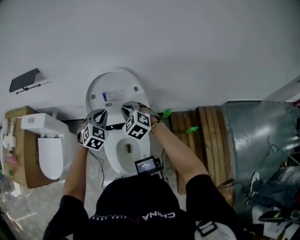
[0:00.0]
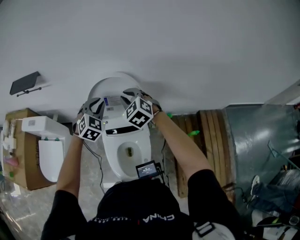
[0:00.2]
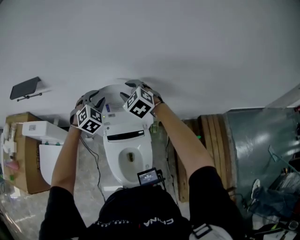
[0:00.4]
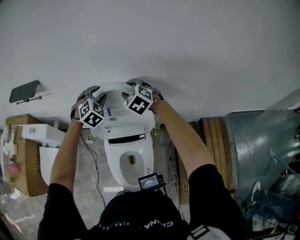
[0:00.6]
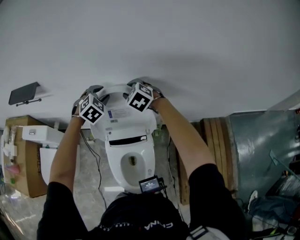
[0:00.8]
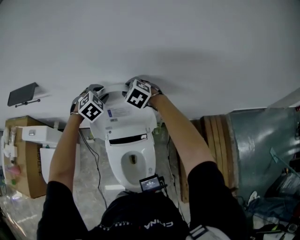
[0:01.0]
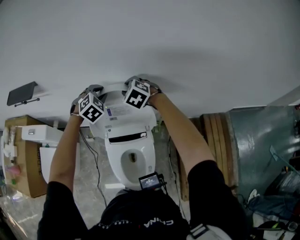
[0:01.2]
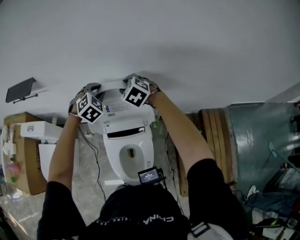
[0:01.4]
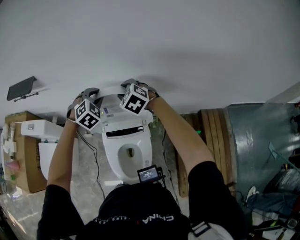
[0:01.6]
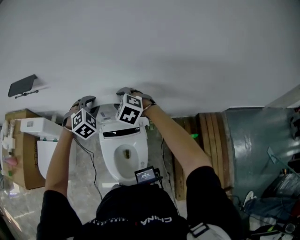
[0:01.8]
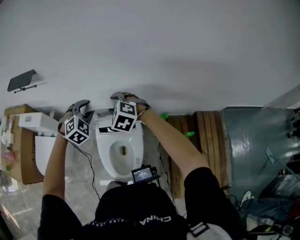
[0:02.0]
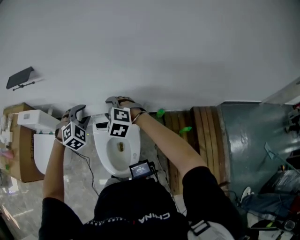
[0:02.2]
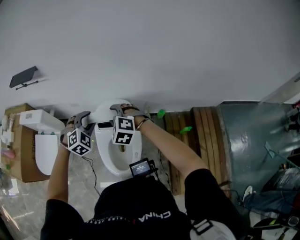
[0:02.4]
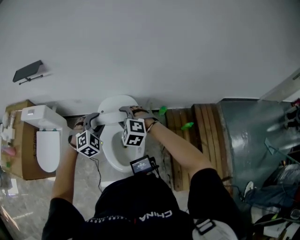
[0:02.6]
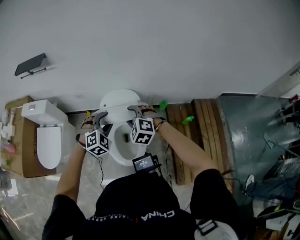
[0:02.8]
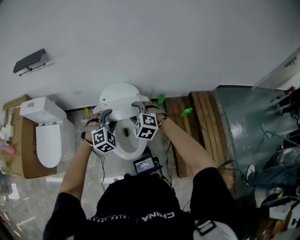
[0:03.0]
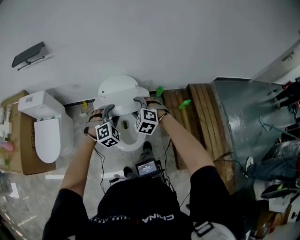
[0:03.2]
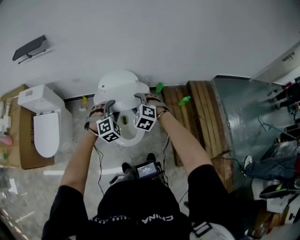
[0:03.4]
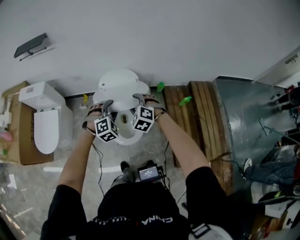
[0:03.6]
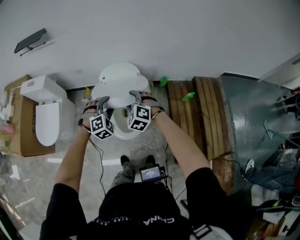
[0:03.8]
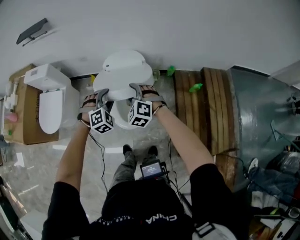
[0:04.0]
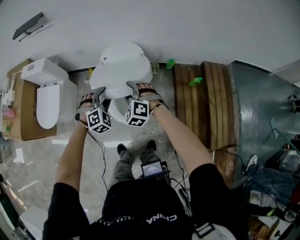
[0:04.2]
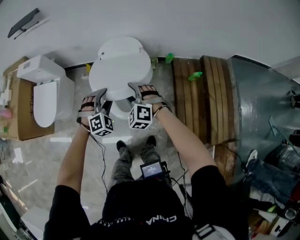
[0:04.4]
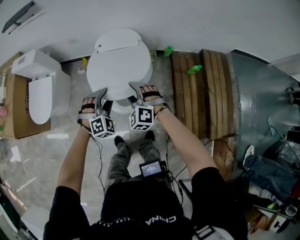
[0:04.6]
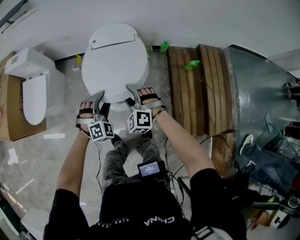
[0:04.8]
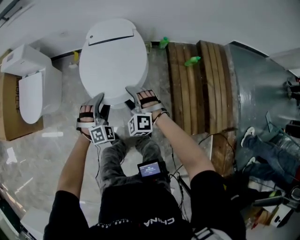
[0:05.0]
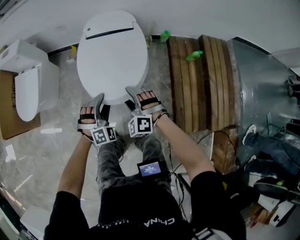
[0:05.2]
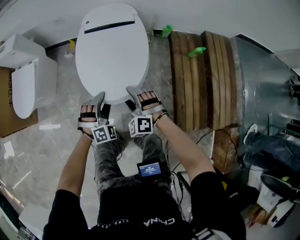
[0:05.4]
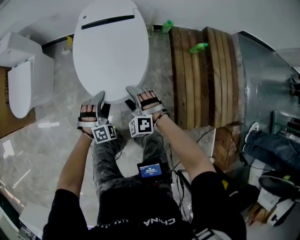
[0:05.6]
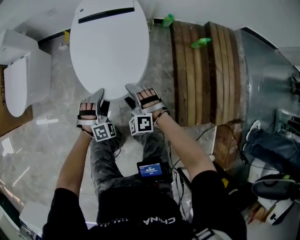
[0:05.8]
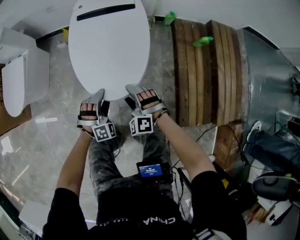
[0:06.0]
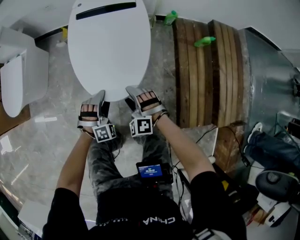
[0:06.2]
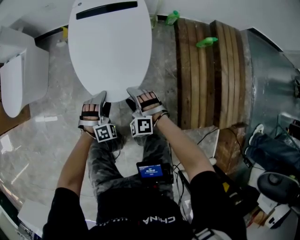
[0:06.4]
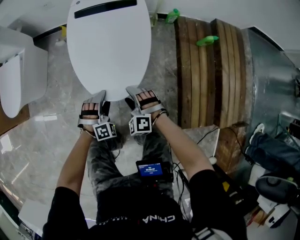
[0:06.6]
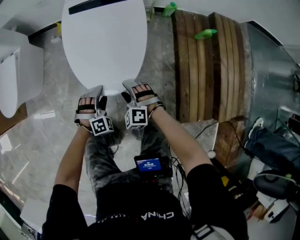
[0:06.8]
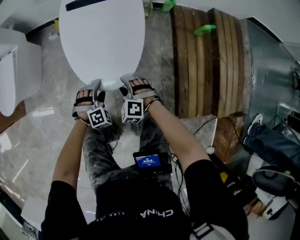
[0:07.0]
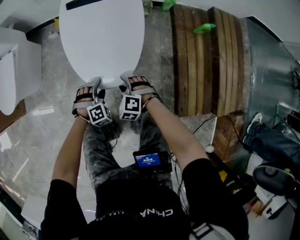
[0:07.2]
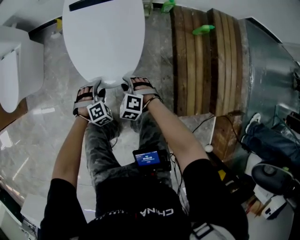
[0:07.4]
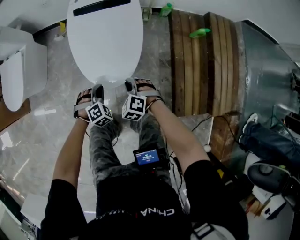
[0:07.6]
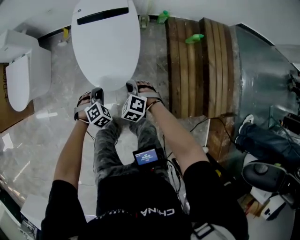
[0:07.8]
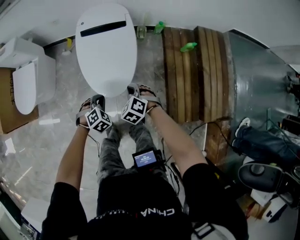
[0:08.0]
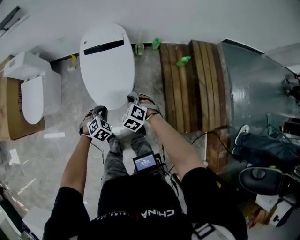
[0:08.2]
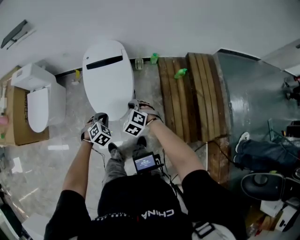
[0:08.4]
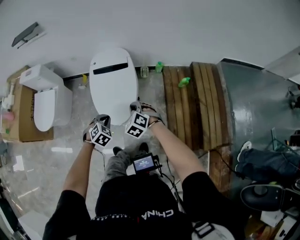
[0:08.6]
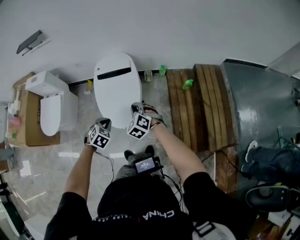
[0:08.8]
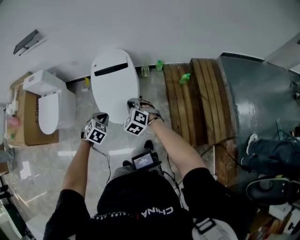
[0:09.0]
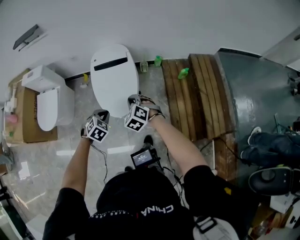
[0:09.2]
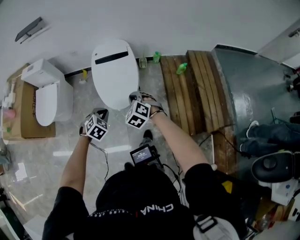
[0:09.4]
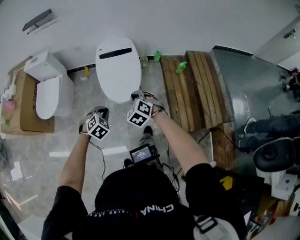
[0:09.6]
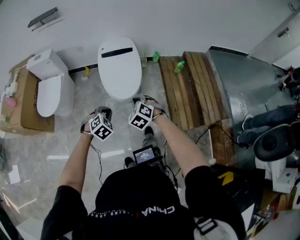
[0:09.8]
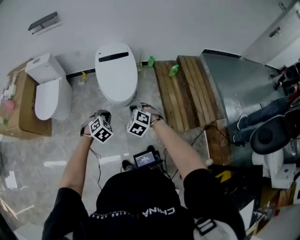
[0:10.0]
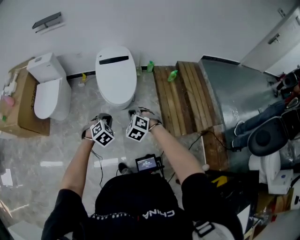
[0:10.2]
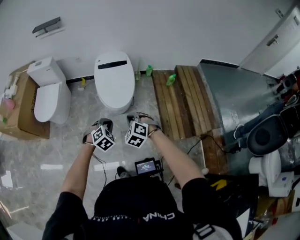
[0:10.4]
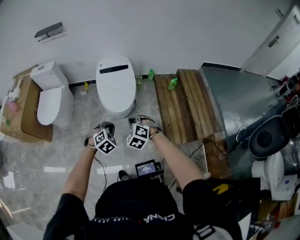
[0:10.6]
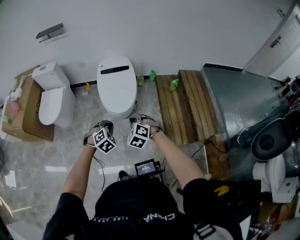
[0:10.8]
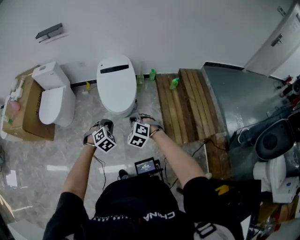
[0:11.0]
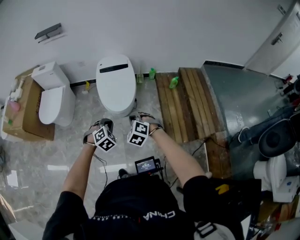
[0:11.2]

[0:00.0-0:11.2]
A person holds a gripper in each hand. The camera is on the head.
0:00.0 to 0:01.6: Both grippers travel together forward, about 15 cm. The right gripper opens.
0:01.6 to 0:03.2: Both grippers move backward, approximately 35 cm.
0:03.2 to 0:04.8: The grippers both shift downward and backward by roughly 20 cm.
0:04.8 to 0:06.4: The two grippers go about 30 cm downward.
0:06.4 to 0:08.0: Both grippers travel together upward, about 15 cm. The right gripper rotates some 30 degrees, and closes its fingers; the left gripper changes its angle by roughly 30 degrees, and closes.
0:08.0 to 0:09.6: Both grippers move upward and backward, approximately 25 cm.
0:09.6 to 0:11.2: The left gripper is displaced backward and to the right by roughly 10 cm. Meanwhile the right gripper is displaced backward by approximately 15 cm.

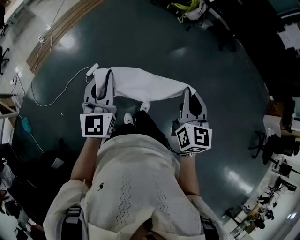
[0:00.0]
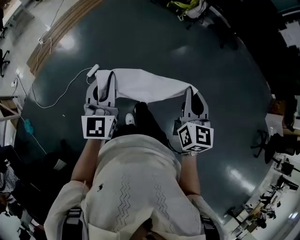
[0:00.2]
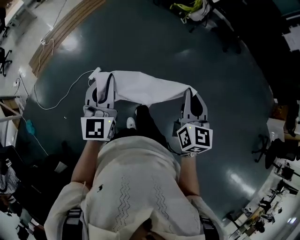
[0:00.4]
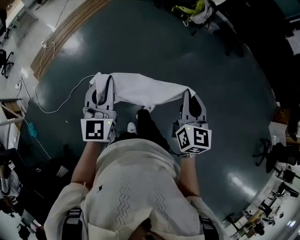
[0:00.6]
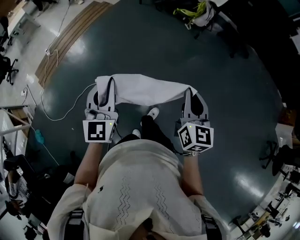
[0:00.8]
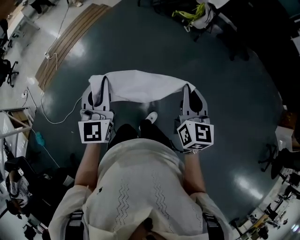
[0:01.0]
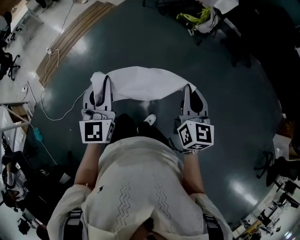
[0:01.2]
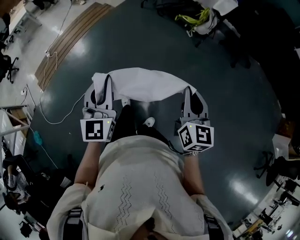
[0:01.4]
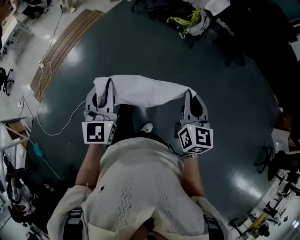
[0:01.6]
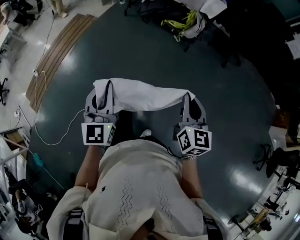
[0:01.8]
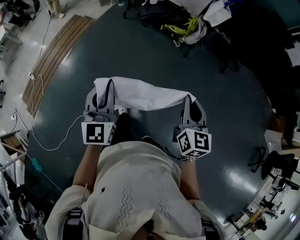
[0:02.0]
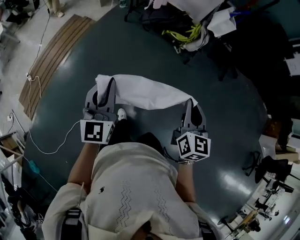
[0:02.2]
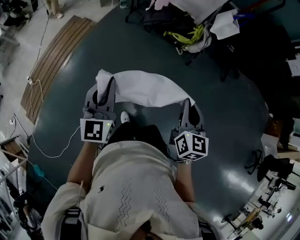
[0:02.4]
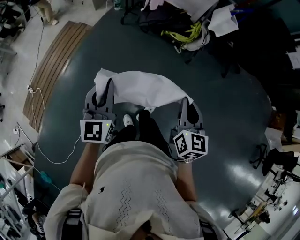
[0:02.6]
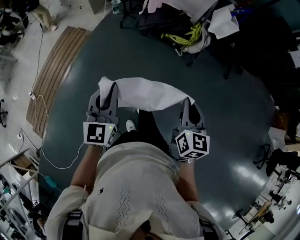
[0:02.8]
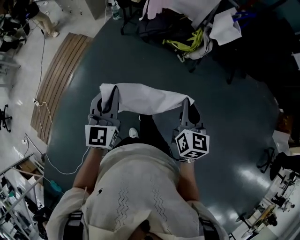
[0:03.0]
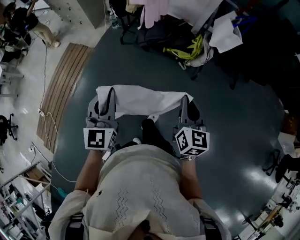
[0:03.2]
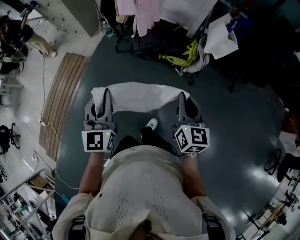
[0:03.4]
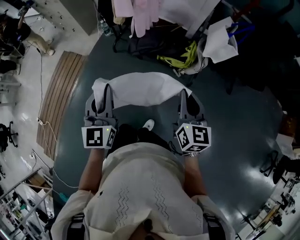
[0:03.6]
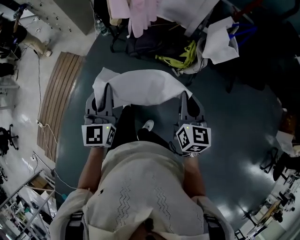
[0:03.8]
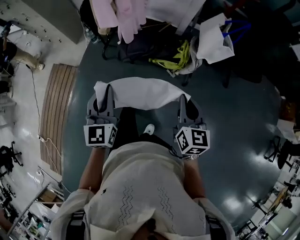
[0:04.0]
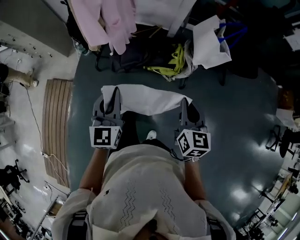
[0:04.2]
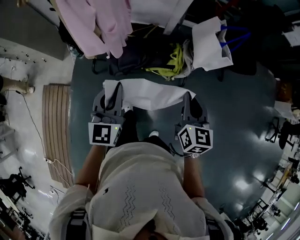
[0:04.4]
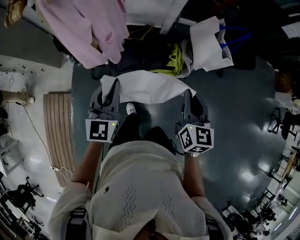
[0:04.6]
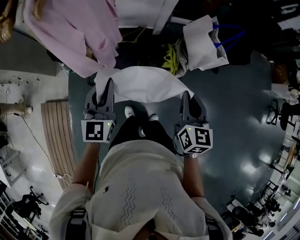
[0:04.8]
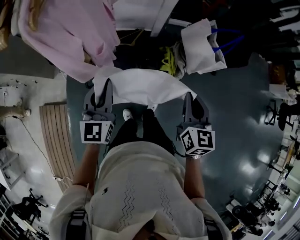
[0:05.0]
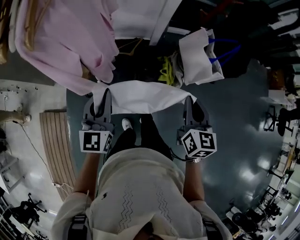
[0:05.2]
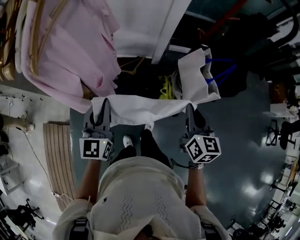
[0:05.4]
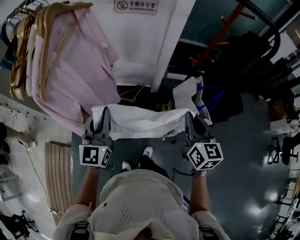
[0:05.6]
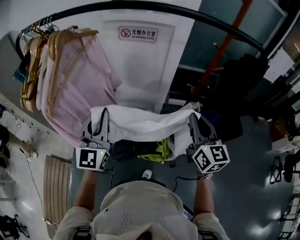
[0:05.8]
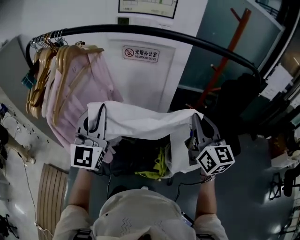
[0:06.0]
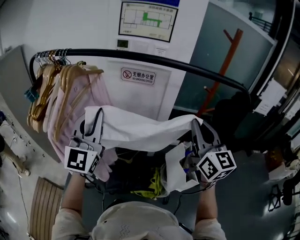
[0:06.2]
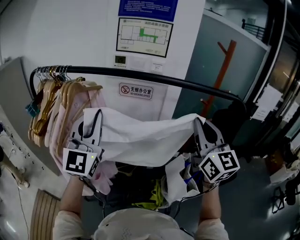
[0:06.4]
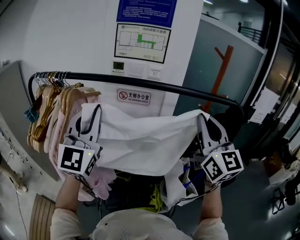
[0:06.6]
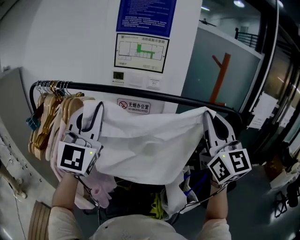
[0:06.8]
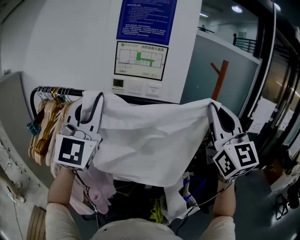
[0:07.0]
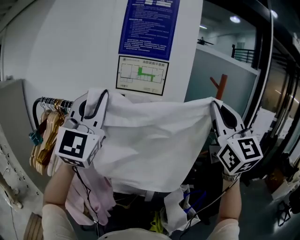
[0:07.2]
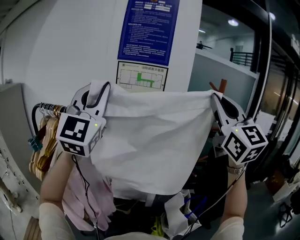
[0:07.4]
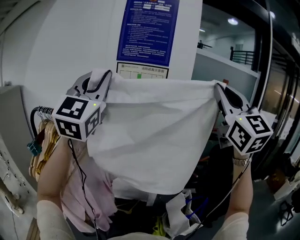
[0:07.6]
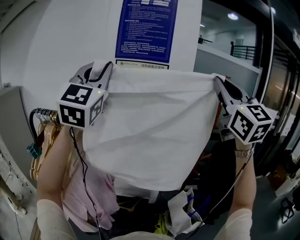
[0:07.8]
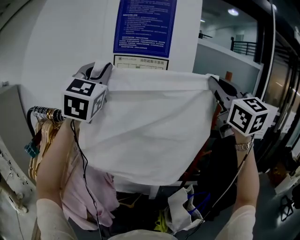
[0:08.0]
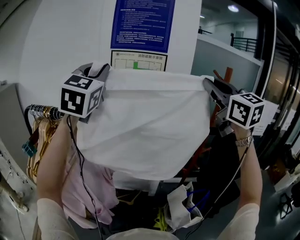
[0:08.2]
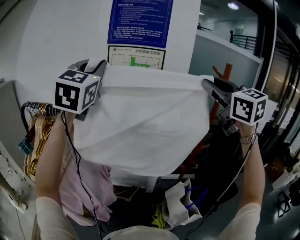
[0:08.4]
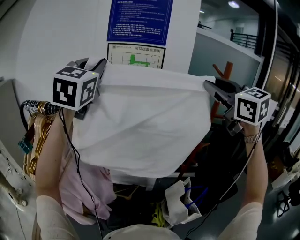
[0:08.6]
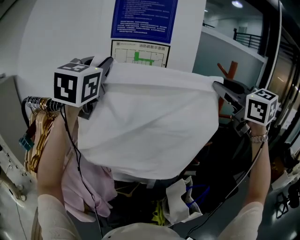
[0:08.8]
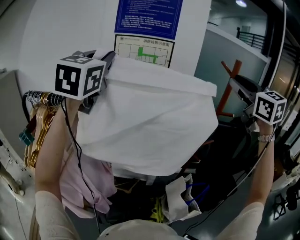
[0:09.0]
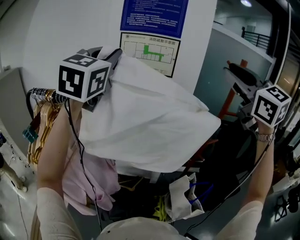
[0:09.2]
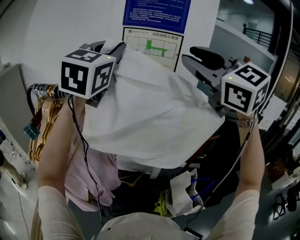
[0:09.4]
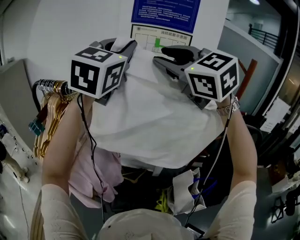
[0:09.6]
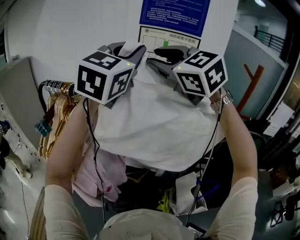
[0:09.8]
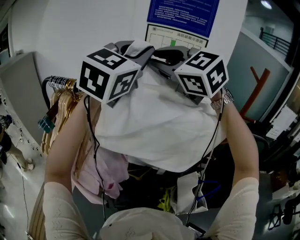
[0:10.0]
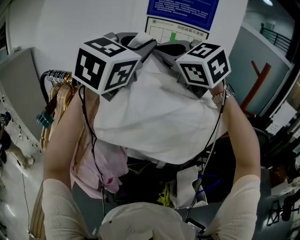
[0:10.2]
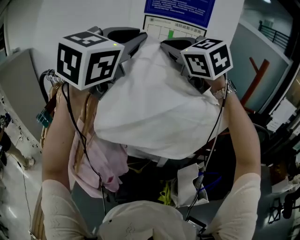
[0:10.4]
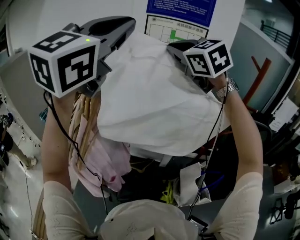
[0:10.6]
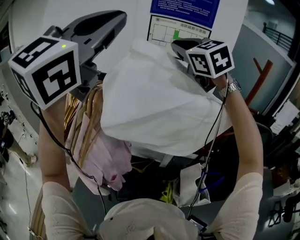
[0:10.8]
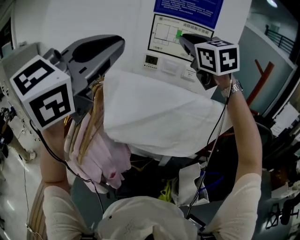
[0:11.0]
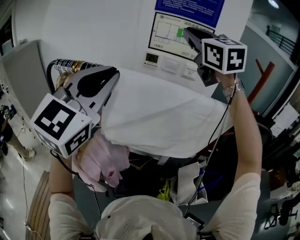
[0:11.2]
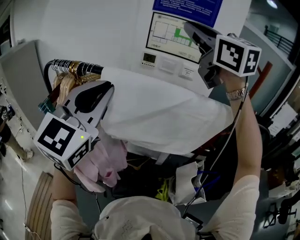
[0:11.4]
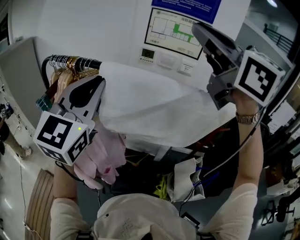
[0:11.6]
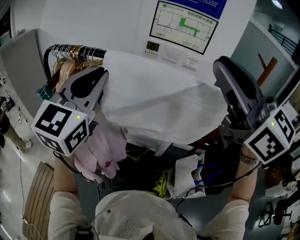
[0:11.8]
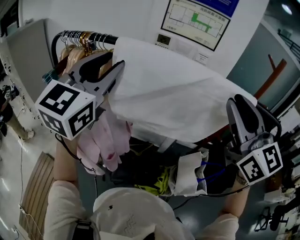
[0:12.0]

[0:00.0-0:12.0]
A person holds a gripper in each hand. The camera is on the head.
0:00.0 to 0:01.6: The grippers both shift forward by some 40 cm.
0:01.6 to 0:03.0: Both grippers are carried forward, roughly 50 cm.
0:03.0 to 0:04.4: The two grippers travel together, forward, about 50 cm.
0:04.4 to 0:06.0: Both grippers travel together forward and upward, some 40 cm. The right gripper changes its angle by approximately 30 degrees. The left gripper swivels about 30 degrees.
0:06.0 to 0:07.6: The two grippers go roughly 35 cm upward. The right gripper changes its angle by some 40 degrees.
0:07.6 to 0:09.0: The right gripper travels forward, to the right and downward by roughly 15 cm, rotates approximately 30 degrees, and opens up, while the left gripper is displaced forward by about 10 cm, and turns by some 20 degrees.
0:09.0 to 0:10.4: The right gripper shifts approximately 35 cm to the left, rotates about 30 degrees, and closes up.
0:10.4 to 0:12.0: The right gripper travels backward, to the right and downward by some 25 cm, and turns by roughly 20 degrees. Meanwhile the left gripper goes roughly 20 cm downward, to the left and backward, and opens up.
